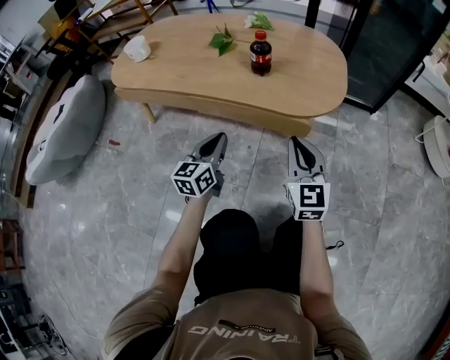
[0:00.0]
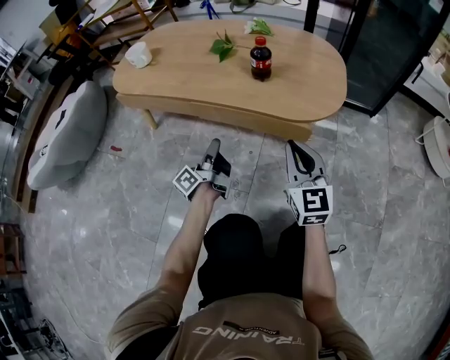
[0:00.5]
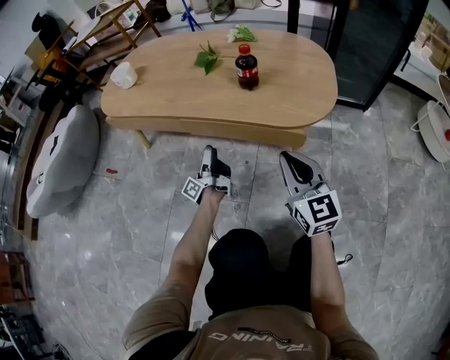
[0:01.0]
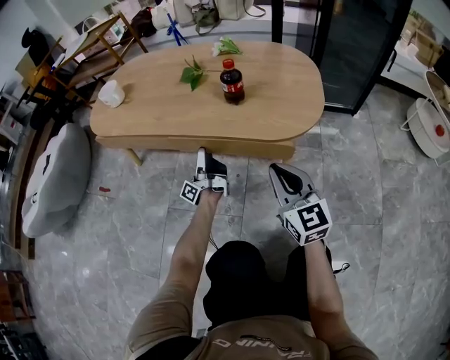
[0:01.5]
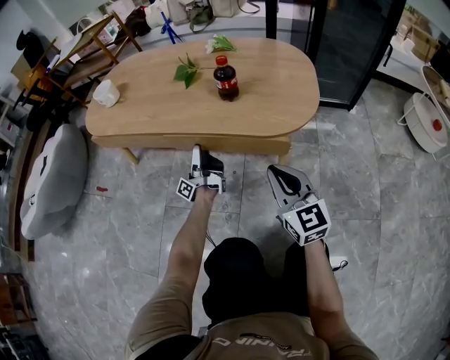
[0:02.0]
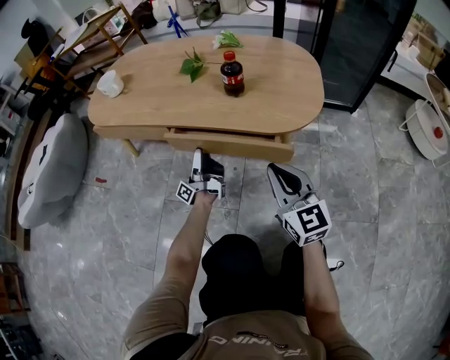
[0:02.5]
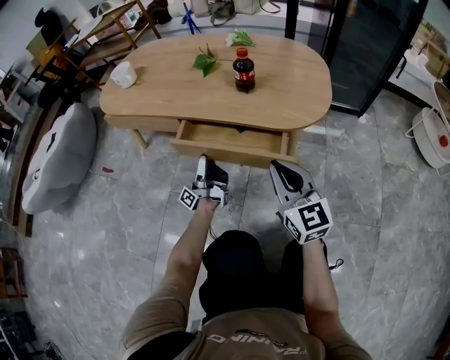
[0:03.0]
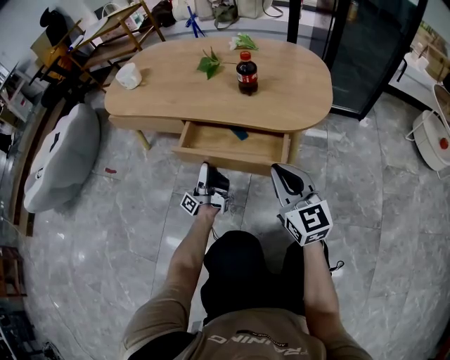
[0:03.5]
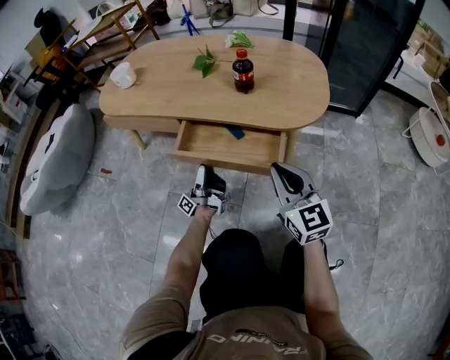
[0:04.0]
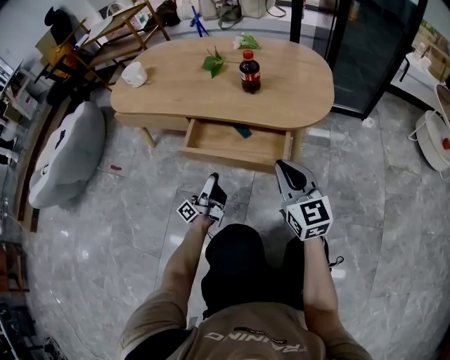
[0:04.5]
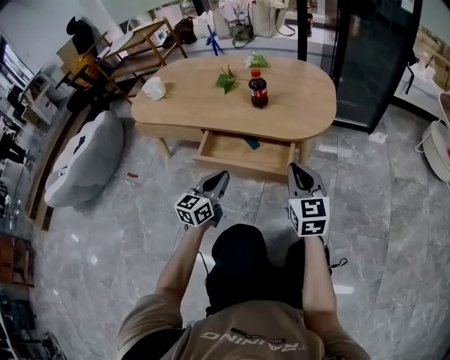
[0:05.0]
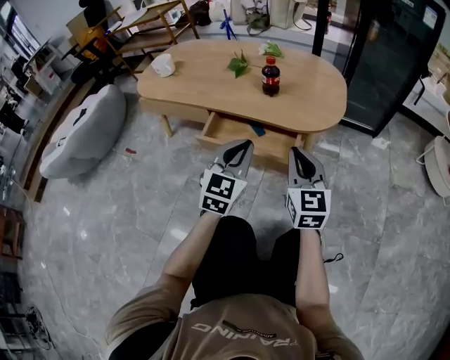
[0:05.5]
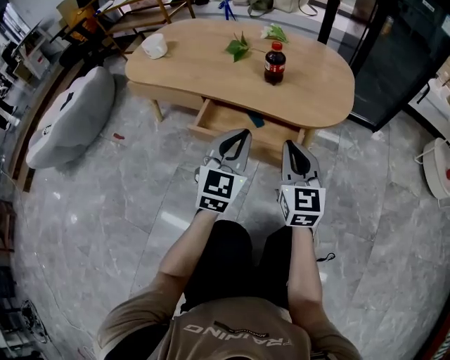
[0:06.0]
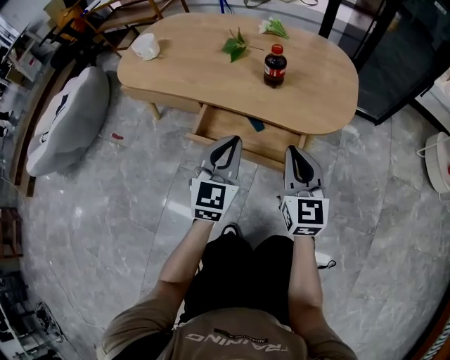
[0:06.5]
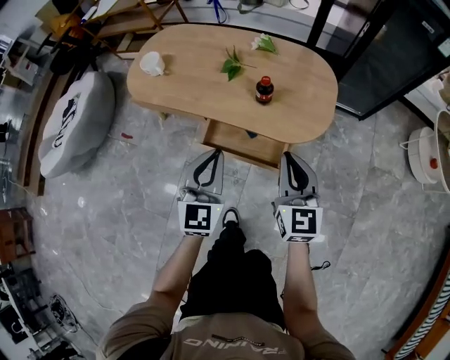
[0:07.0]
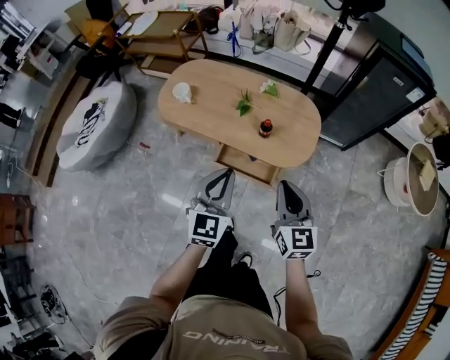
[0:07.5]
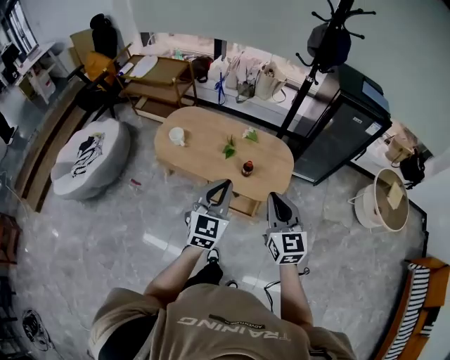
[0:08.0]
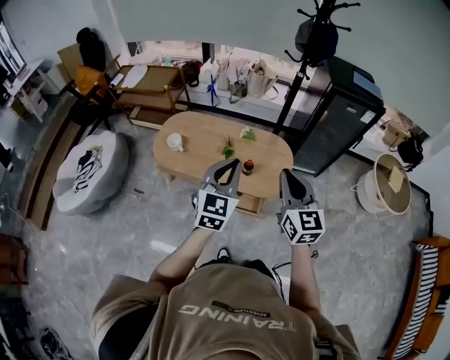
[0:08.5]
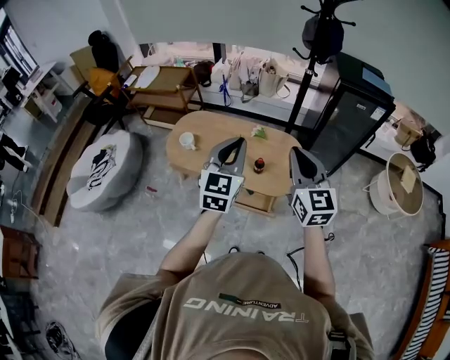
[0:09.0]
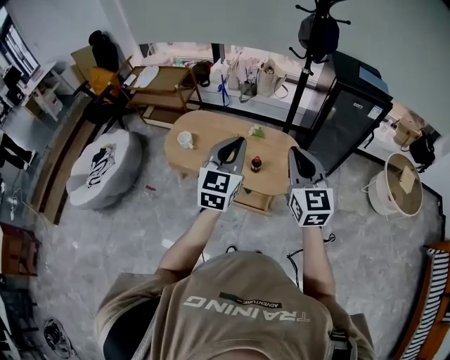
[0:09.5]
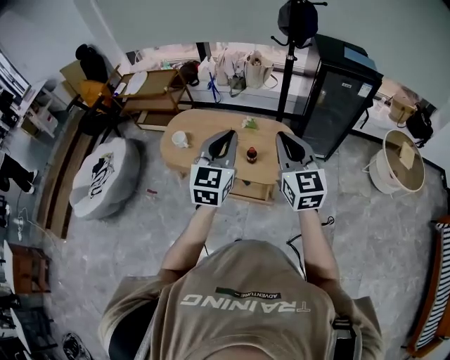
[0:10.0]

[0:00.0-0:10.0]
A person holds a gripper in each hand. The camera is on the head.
0:00.0 to 0:02.0: The left gripper goes roughly 15 cm forward and downward, twists about 70 degrees counterclockwise, seen from behind, and opens up.
0:02.0 to 0:04.0: The left gripper heads backward, covering roughly 10 cm.
0:04.0 to 0:06.0: The left gripper shifts roughly 25 cm upward and to the right, rotates around the line of its fingers by about 100 degrees, clockwise from behind, and closes up.
0:06.0 to 0:08.0: The grippers both shift upward by approximately 50 cm.
0:08.0 to 0:10.0: The right gripper travels upward and forward by some 10 cm. Meanwhile the left gripper heads upward, covering approximately 10 cm.

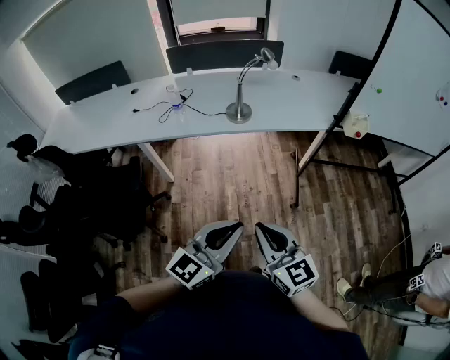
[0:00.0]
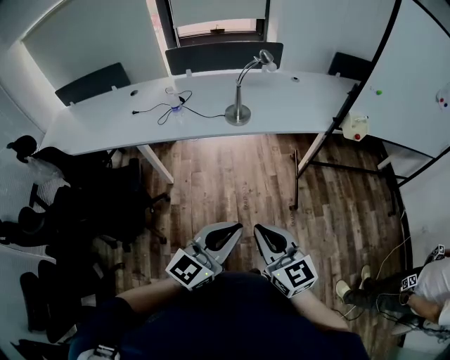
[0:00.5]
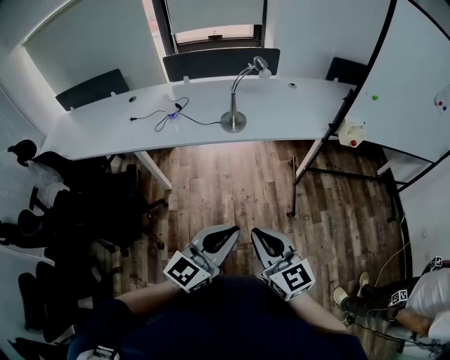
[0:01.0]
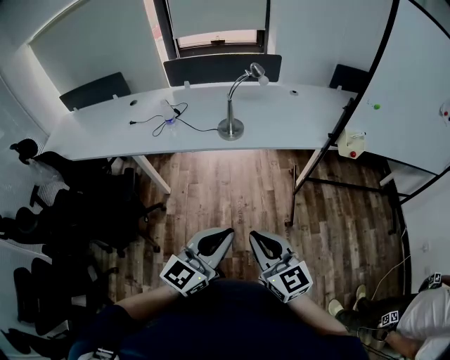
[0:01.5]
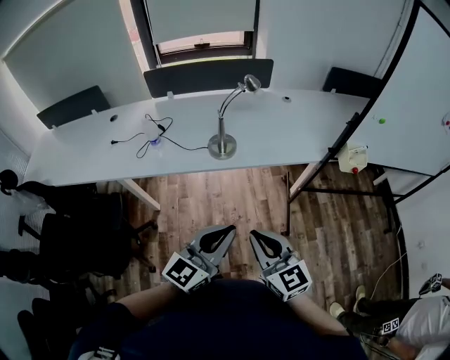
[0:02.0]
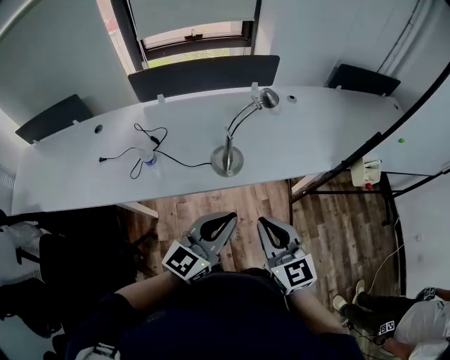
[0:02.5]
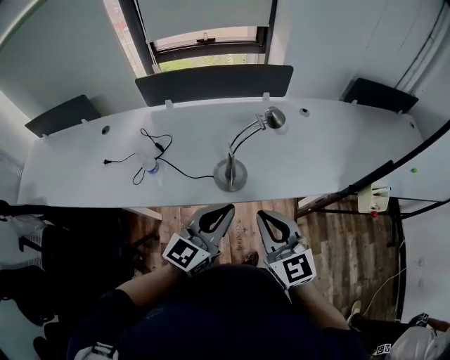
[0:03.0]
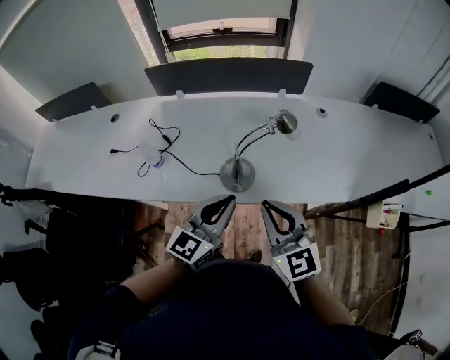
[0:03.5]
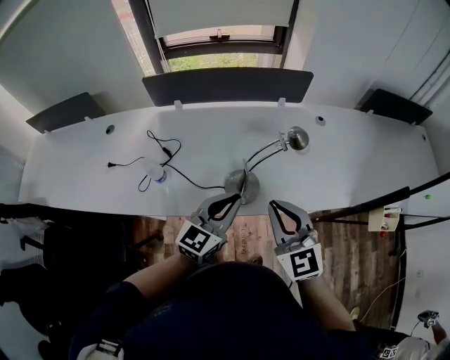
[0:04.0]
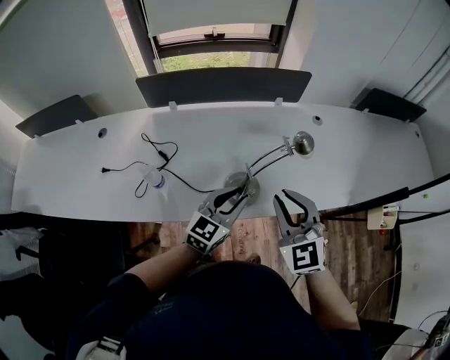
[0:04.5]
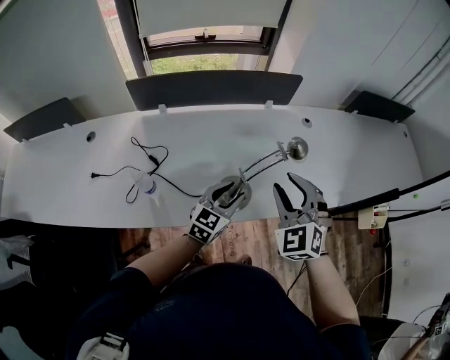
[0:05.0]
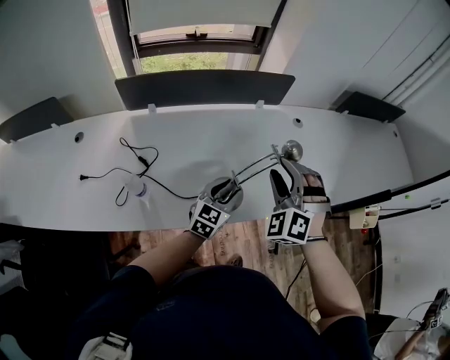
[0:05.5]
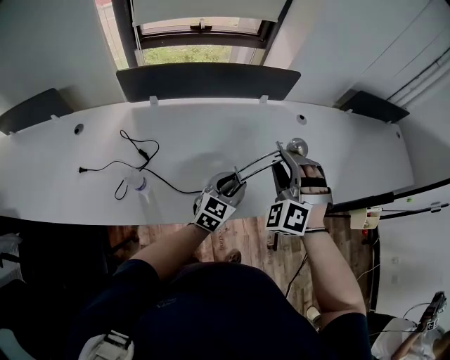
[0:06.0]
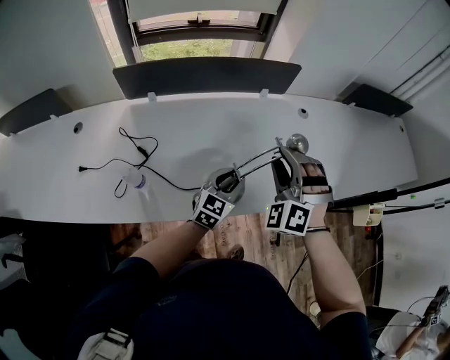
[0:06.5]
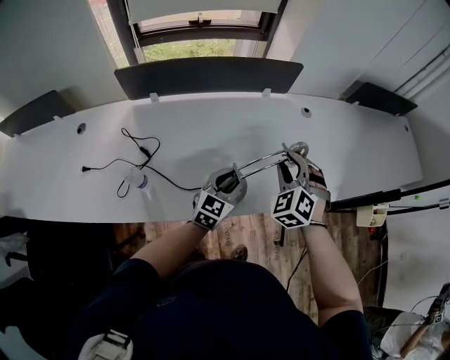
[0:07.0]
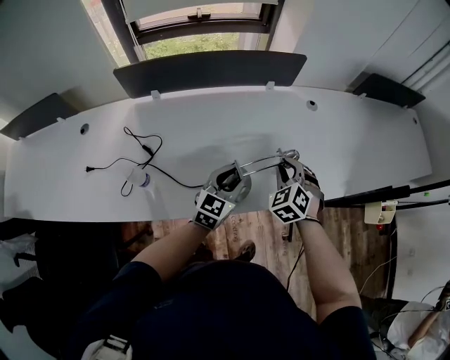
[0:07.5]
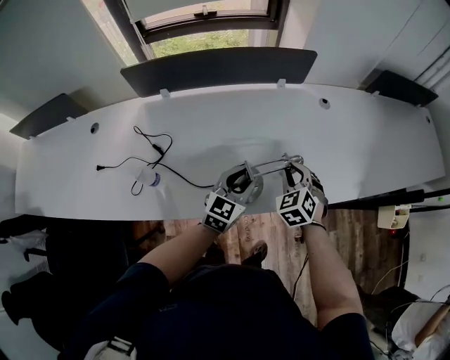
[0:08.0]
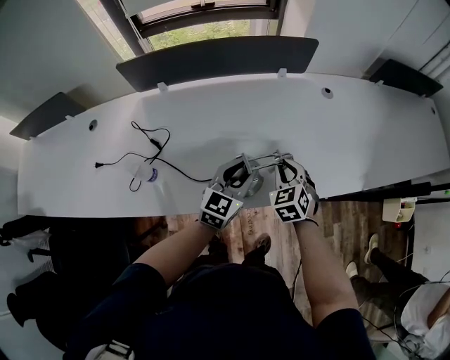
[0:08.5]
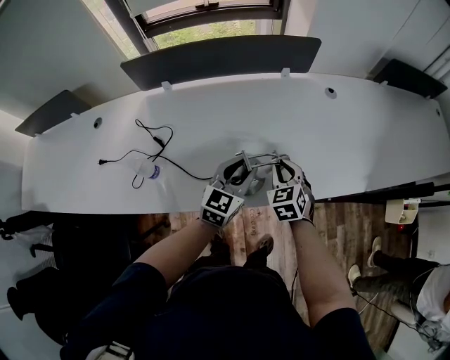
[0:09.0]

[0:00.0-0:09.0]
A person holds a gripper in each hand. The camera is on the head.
0:00.0 to 0:02.0: Both grippers travel together forward, about 20 cm.
0:02.0 to 0:04.5: Both grippers are carried forward, some 40 cm. The right gripper changes its angle by some 30 degrees.
0:04.5 to 0:07.0: Both grippers move forward and downward, roughly 15 cm. The right gripper rotates about 40 degrees.
0:07.0 to 0:09.0: The right gripper goes some 15 cm downward, and turns by some 30 degrees.

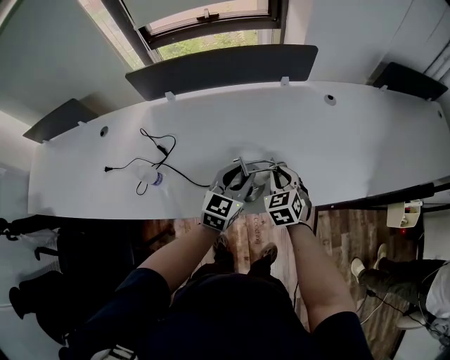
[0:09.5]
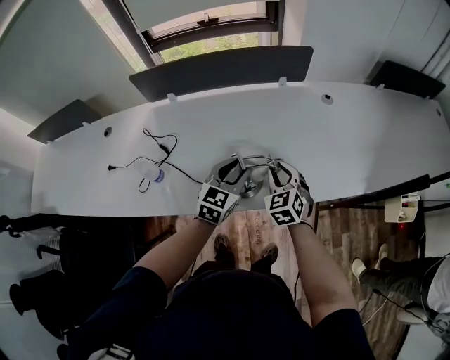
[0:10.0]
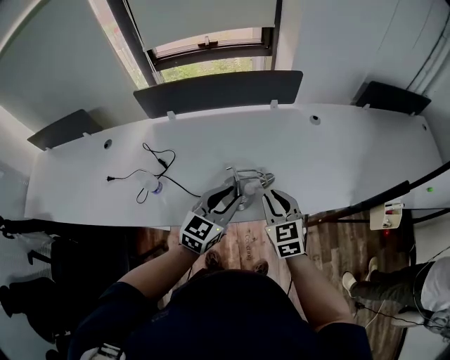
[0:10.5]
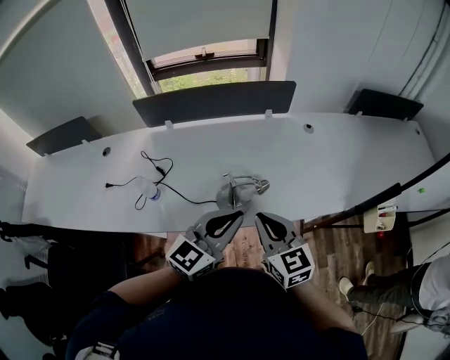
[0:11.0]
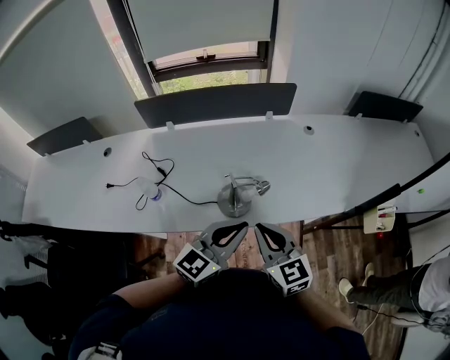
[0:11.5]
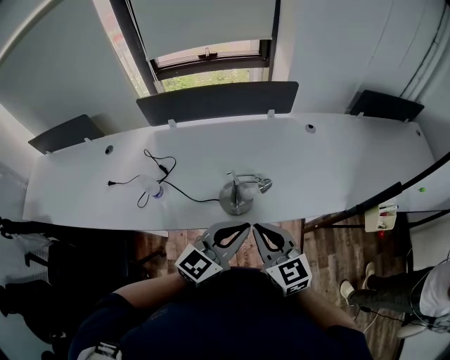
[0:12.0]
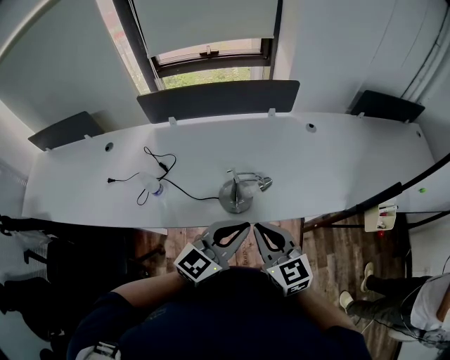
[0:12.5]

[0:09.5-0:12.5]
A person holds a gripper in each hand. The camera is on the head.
0:09.5 to 0:11.0: Both grippers travel together upward and backward, about 25 cm. The right gripper changes its angle by roughly 30 degrees. Meanwhile the left gripper swivels roughly 20 degrees, and closes.
0:11.0 to 0:12.5: There are only small adjustments of the grippers.

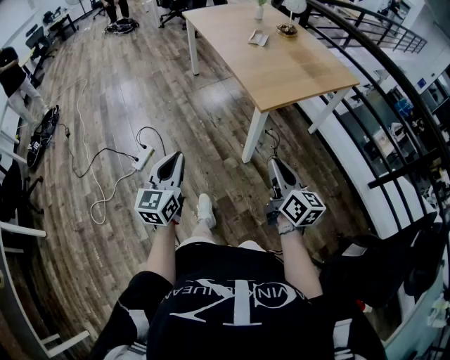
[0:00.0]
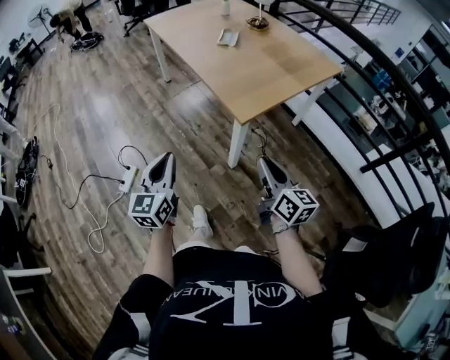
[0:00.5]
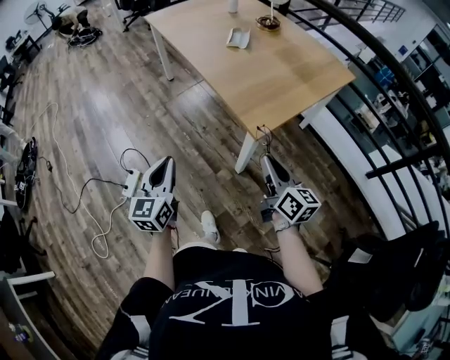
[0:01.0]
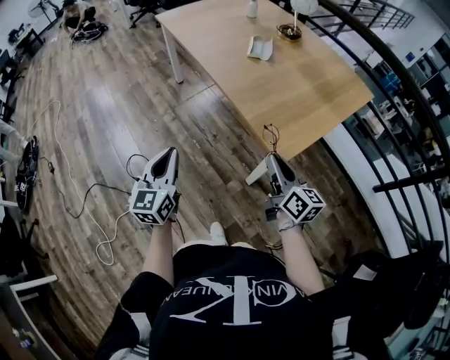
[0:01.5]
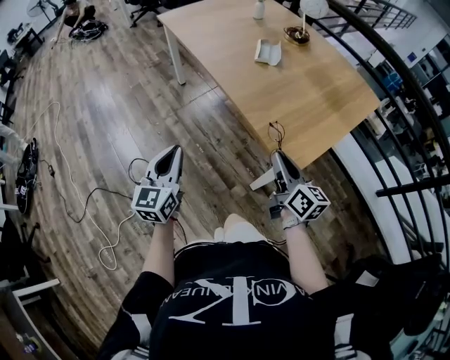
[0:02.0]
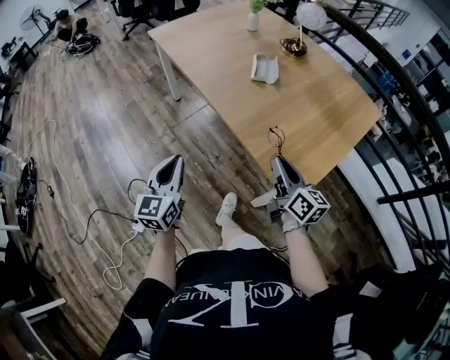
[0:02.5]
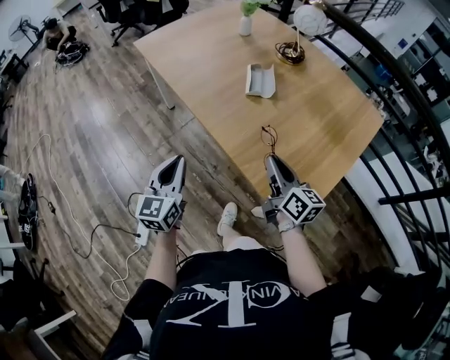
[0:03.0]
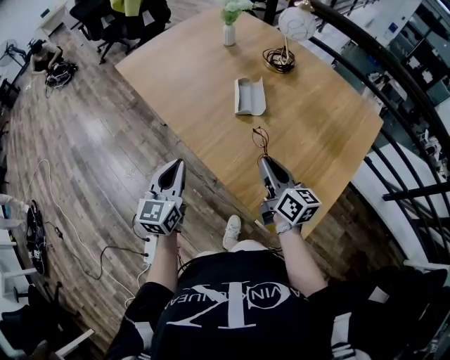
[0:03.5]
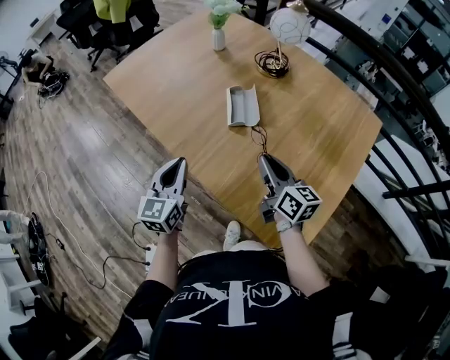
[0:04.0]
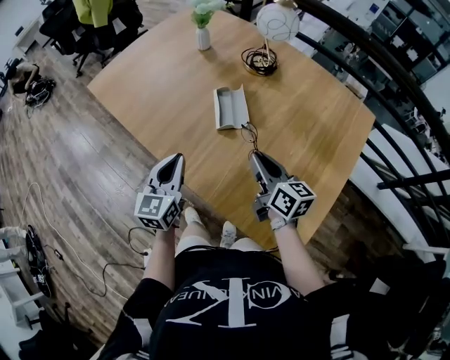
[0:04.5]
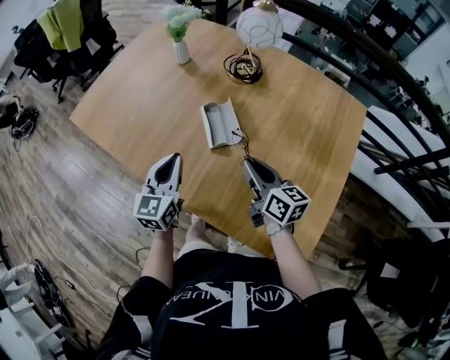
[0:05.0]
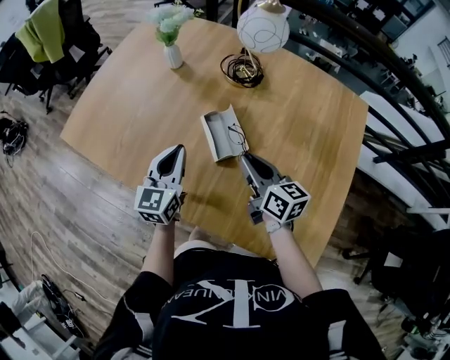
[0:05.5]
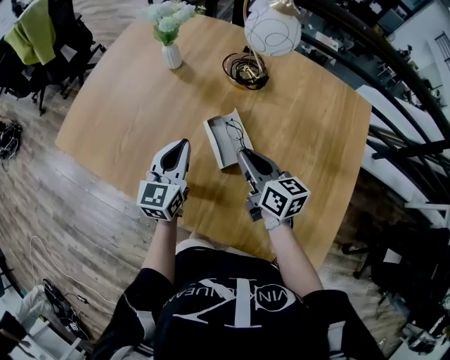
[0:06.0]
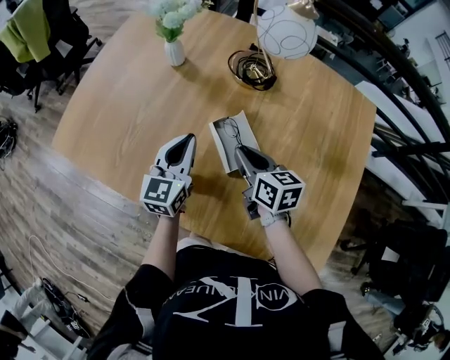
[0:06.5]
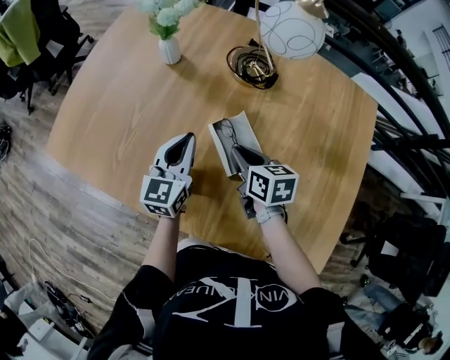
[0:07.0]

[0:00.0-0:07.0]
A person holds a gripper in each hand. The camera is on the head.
0:00.0 to 0:02.0: Both grippers travel together forward, some 35 cm.
0:02.0 to 0:03.5: Both grippers travel together forward, some 25 cm.
0:03.5 to 0:05.0: The right gripper is displaced forward by about 10 cm. The left gripper shifts about 20 cm forward.
0:05.0 to 0:07.0: The left gripper moves forward, some 20 cm; the right gripper is displaced forward, to the left and downward by approximately 20 cm, and rotates roughly 30 degrees.
